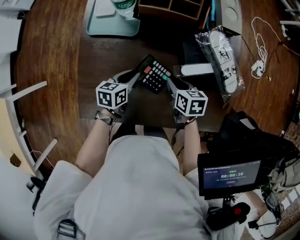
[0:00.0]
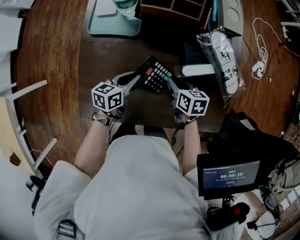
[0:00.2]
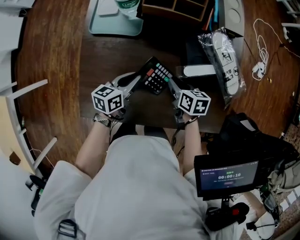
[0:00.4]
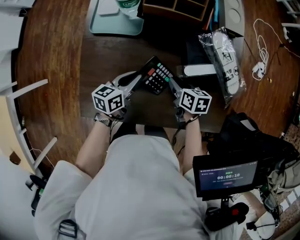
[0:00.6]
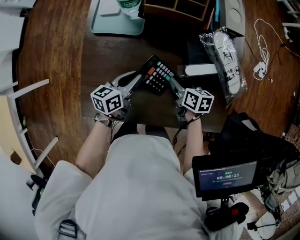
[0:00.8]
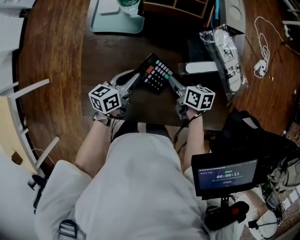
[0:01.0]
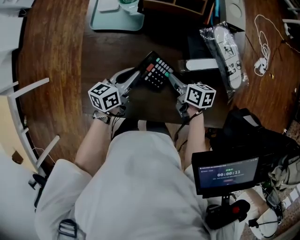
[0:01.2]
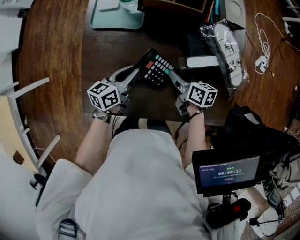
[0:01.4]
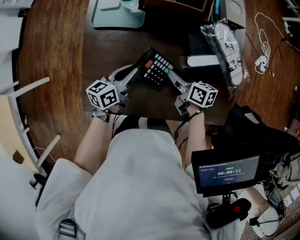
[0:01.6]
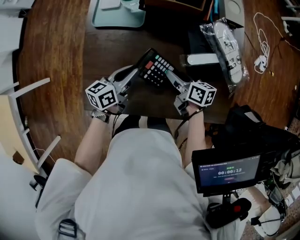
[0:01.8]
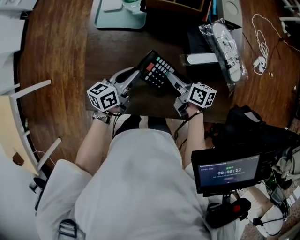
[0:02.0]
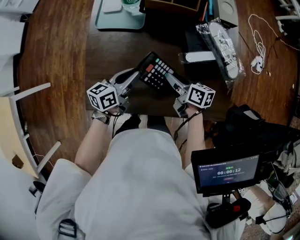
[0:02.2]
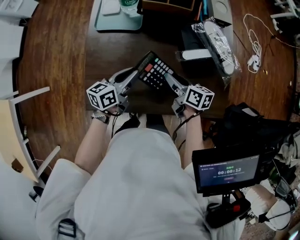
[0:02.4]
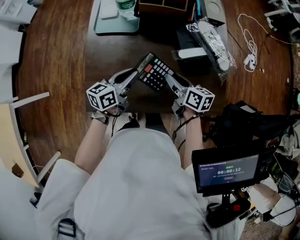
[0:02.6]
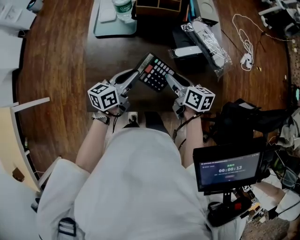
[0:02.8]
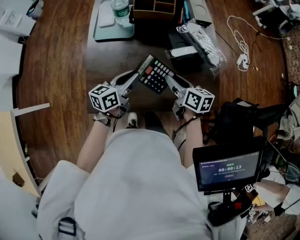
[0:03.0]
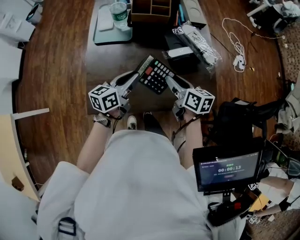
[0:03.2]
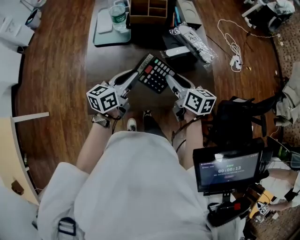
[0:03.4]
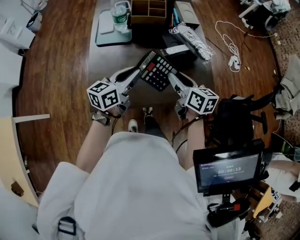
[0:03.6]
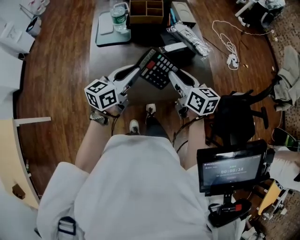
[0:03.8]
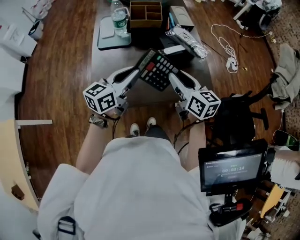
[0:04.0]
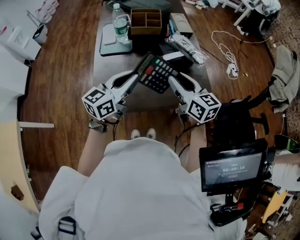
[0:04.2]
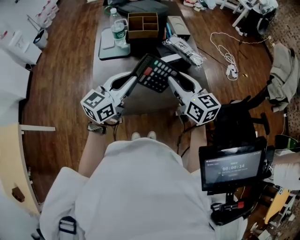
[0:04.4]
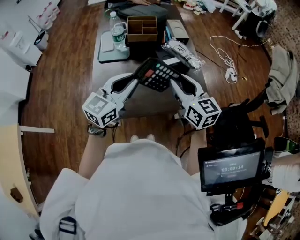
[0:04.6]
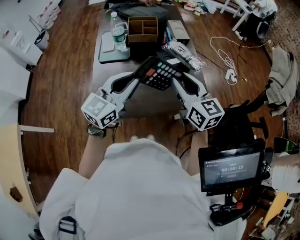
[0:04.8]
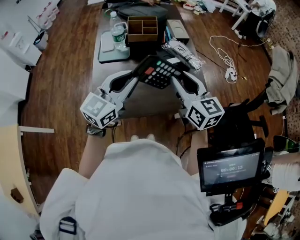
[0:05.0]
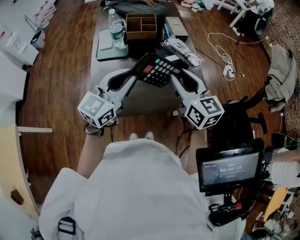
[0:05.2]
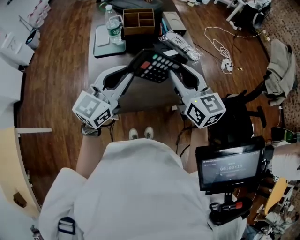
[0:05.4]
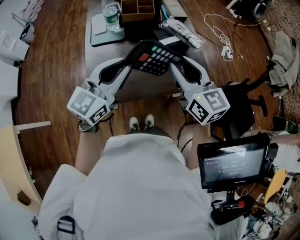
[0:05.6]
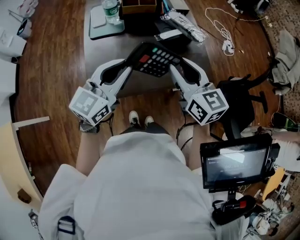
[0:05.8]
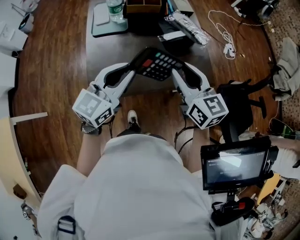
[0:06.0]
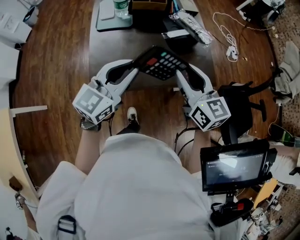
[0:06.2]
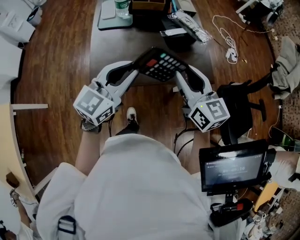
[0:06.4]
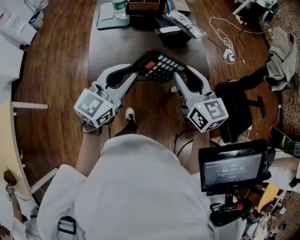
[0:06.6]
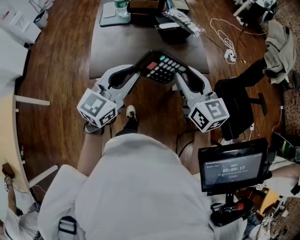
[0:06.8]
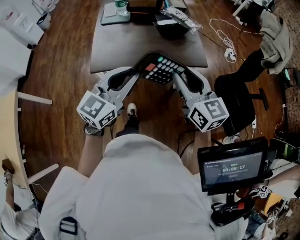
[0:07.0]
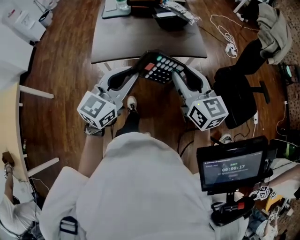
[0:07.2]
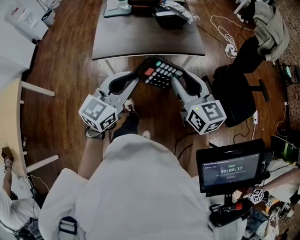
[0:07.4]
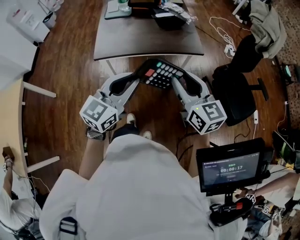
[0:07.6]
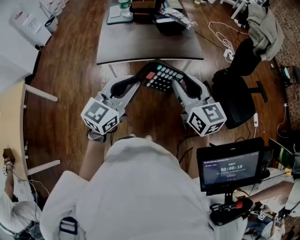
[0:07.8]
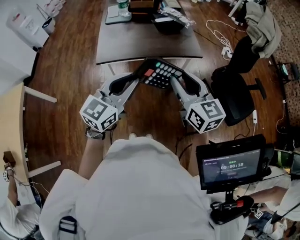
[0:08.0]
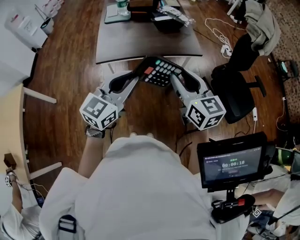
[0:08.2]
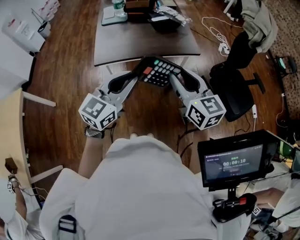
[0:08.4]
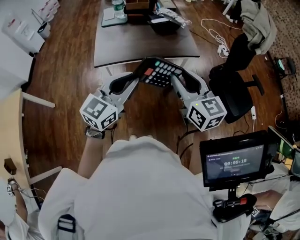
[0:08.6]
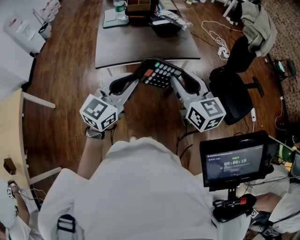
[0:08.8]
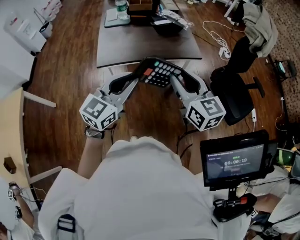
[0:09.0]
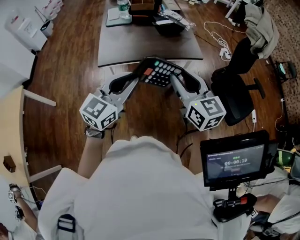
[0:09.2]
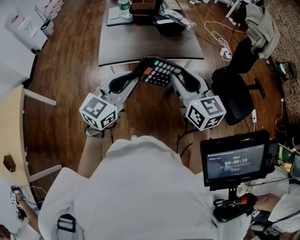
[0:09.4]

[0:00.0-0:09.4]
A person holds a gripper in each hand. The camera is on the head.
0:00.0 to 0:01.6: The right gripper swivels roughly 30 degrees; the left gripper moves some 5 cm.
0:01.6 to 0:03.2: Both grippers move upward and backward, approximately 15 cm. The right gripper changes its angle by approximately 20 degrees.
0:03.2 to 0:04.8: The right gripper travels upward by about 20 cm, and changes its angle by some 40 degrees; the left gripper travels upward and backward by some 20 cm, and swivels about 40 degrees.
0:04.8 to 0:06.2: The two grippers go roughly 5 cm backward.
0:06.2 to 0:07.8: Both grippers move backward, roughly 30 cm.
0:07.8 to 0:09.4: The grippers make only small movements.

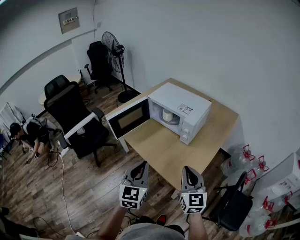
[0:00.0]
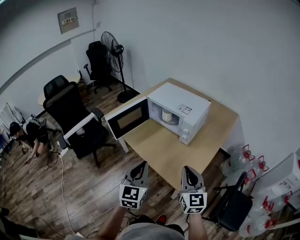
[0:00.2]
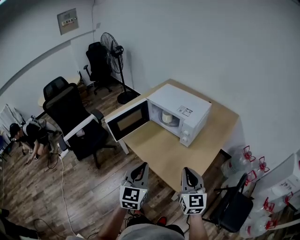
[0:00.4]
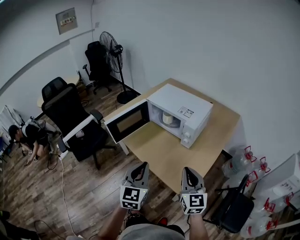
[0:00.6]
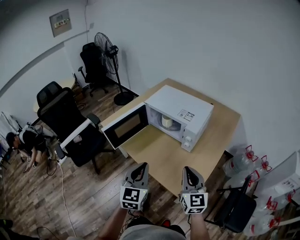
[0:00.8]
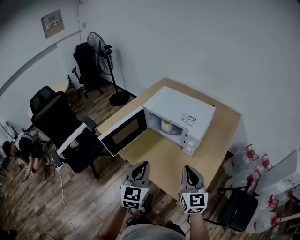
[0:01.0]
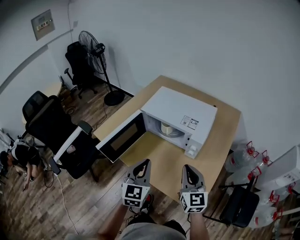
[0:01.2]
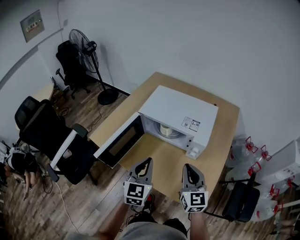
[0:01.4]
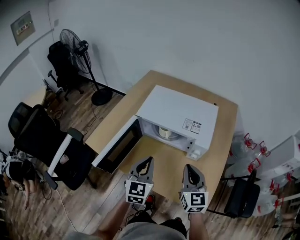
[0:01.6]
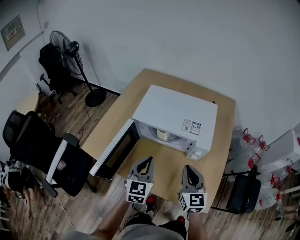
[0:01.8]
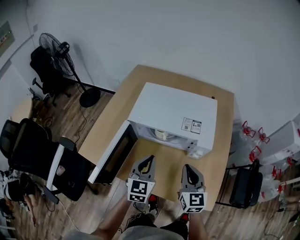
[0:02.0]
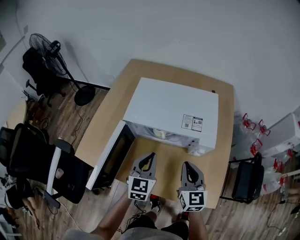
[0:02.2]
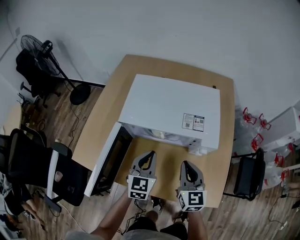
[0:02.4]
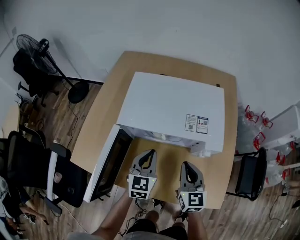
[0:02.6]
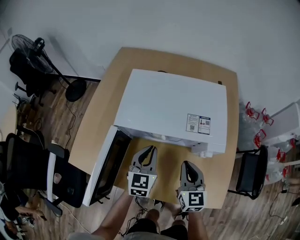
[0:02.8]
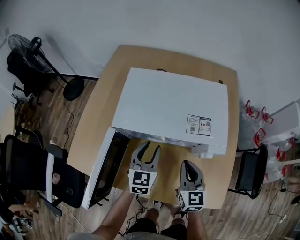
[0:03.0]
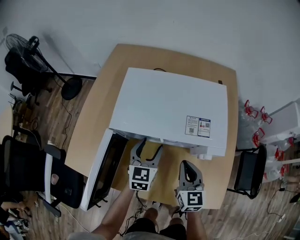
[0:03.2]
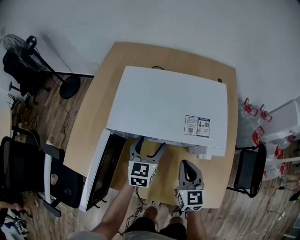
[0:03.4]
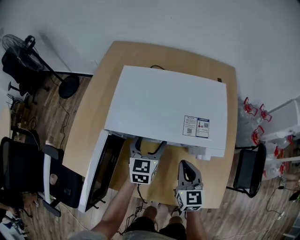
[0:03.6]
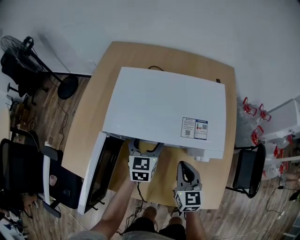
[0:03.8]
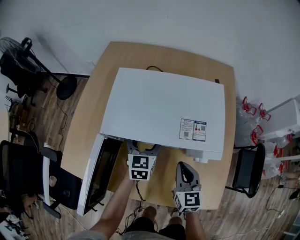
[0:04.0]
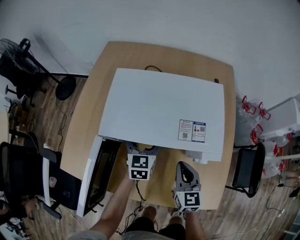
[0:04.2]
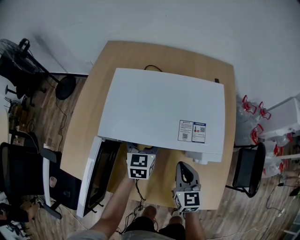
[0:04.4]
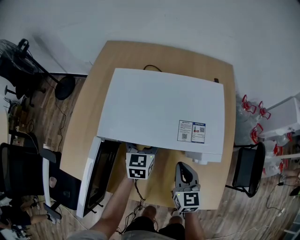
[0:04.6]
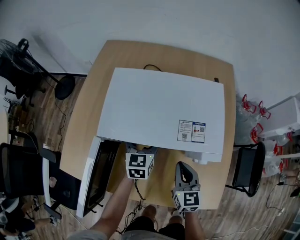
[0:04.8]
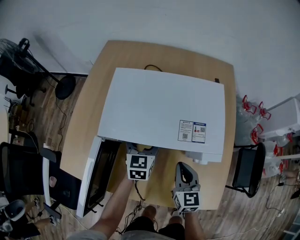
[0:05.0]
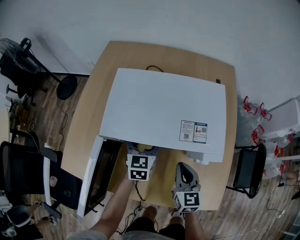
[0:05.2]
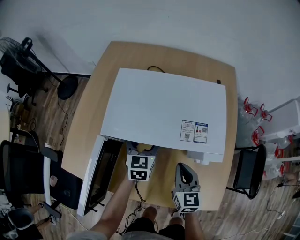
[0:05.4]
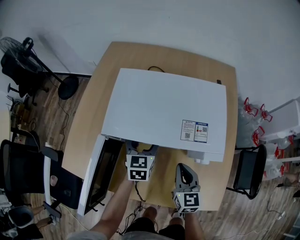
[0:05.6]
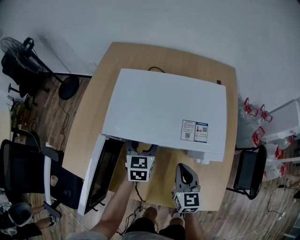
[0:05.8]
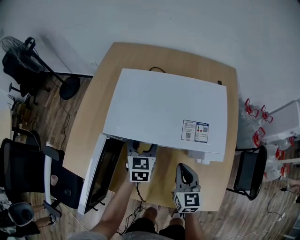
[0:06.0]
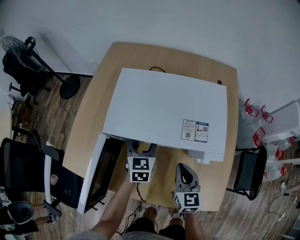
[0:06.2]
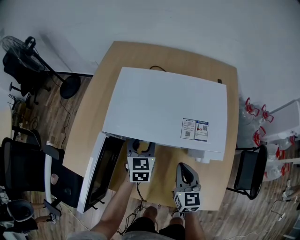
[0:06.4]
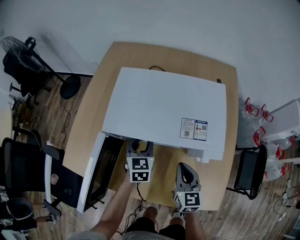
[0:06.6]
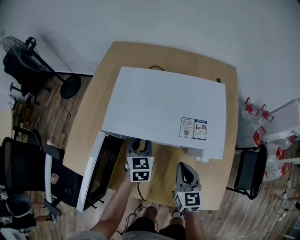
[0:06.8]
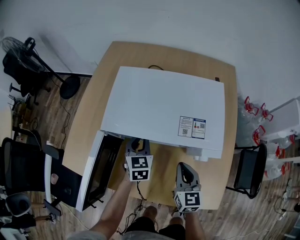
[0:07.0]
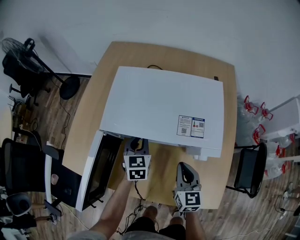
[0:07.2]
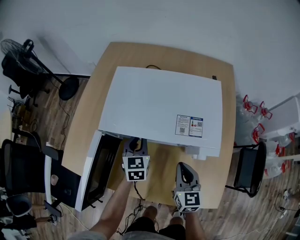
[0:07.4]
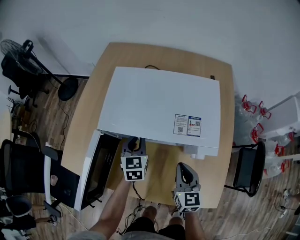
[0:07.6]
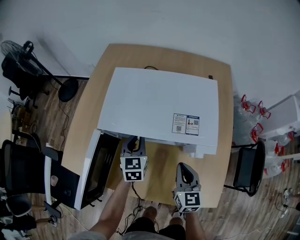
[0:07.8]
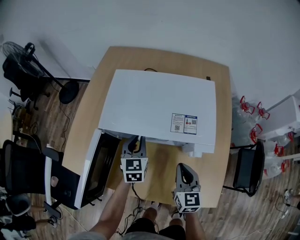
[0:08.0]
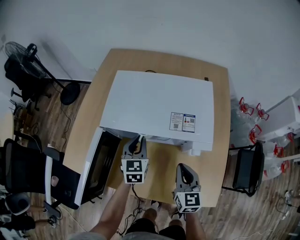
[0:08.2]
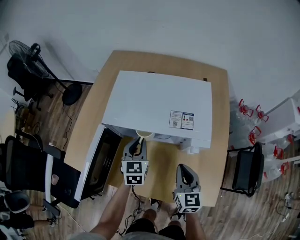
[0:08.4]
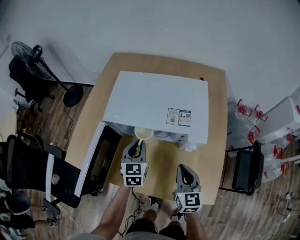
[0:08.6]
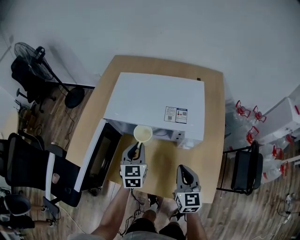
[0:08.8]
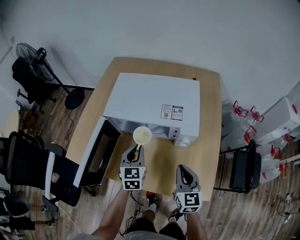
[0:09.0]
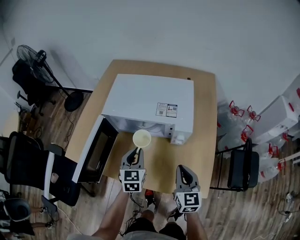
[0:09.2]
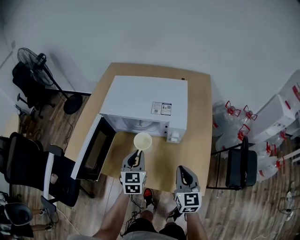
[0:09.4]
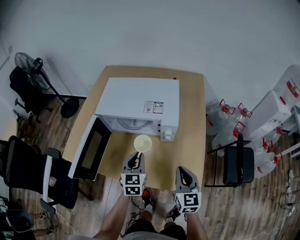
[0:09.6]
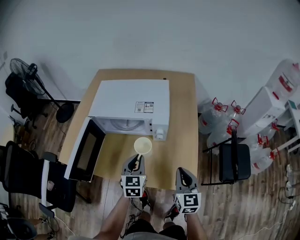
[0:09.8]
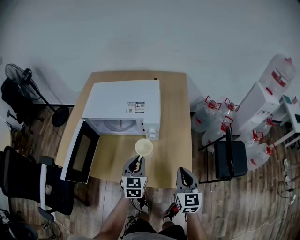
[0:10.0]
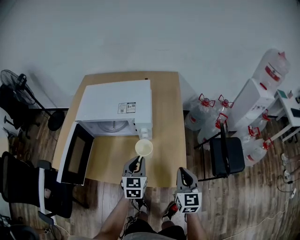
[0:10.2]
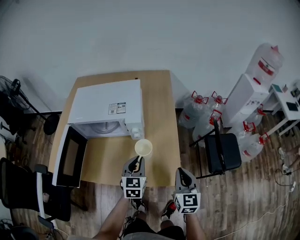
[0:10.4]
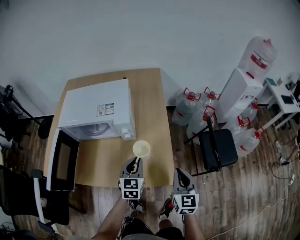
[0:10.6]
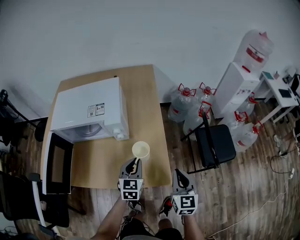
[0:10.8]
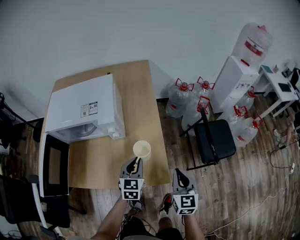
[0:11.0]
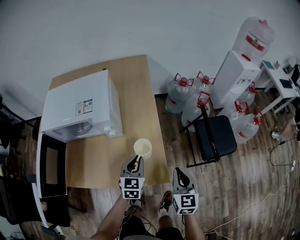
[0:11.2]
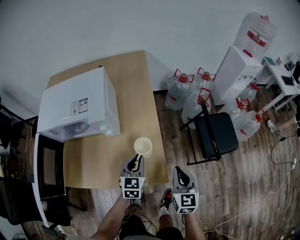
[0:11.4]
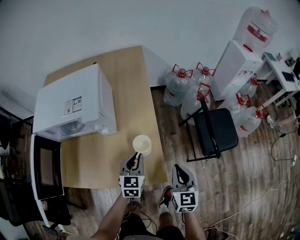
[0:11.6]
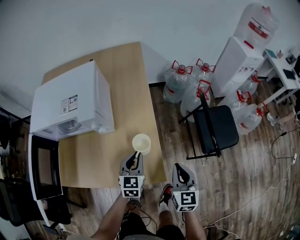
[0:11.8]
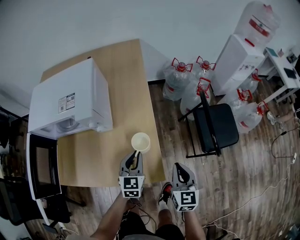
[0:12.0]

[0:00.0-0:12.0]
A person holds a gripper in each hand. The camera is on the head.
0:00.0 to 0:01.6: Both grippers move forward, about 25 cm.
0:01.6 to 0:03.0: The right gripper is displaced downward and forward by roughly 15 cm. Meanwhile the left gripper shifts roughly 20 cm forward and downward.
0:03.0 to 0:04.4: The left gripper goes roughly 10 cm forward, and opens.
0:04.4 to 0:06.0: The grippers move only a little.
0:06.0 to 0:07.6: The left gripper closes its fingers.
0:07.6 to 0:09.0: Both grippers travel together backward and upward, approximately 10 cm.
0:09.0 to 0:10.4: The two grippers go approximately 25 cm to the right and backward.
0:10.4 to 0:12.0: The left gripper shifts approximately 15 cm to the right and downward. Meanwhile the right gripper goes approximately 15 cm downward and to the right.

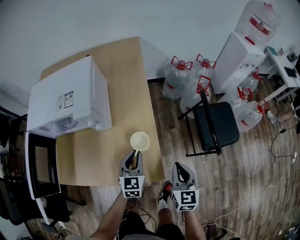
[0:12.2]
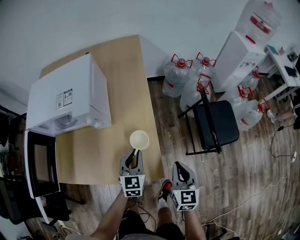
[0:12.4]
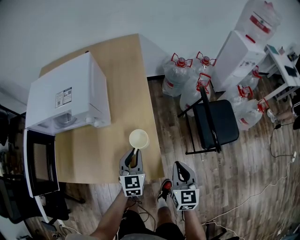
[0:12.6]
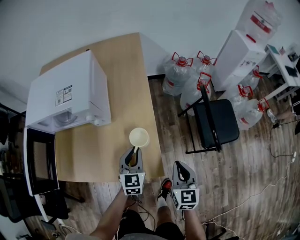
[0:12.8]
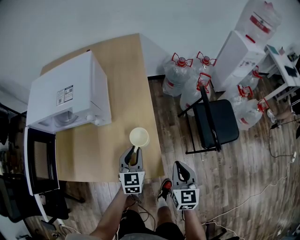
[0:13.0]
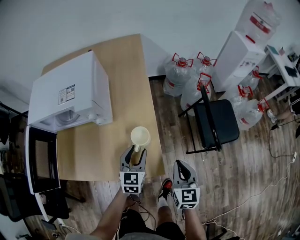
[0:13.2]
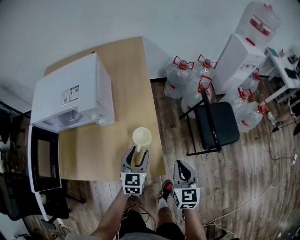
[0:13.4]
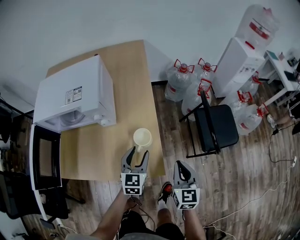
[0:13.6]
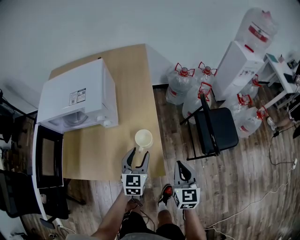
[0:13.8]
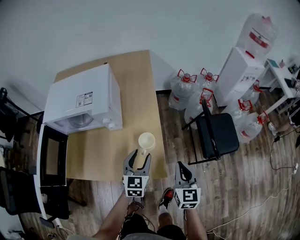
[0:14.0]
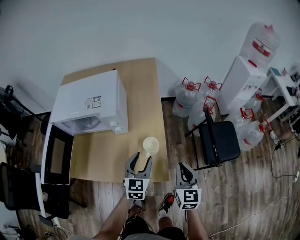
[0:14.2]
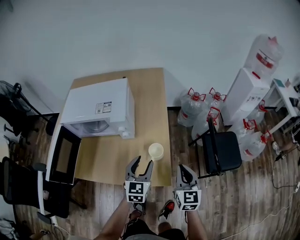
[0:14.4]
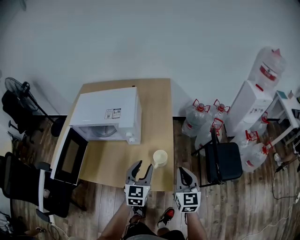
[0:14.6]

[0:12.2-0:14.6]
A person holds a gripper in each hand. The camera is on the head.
0:12.2 to 0:13.4: The left gripper opens its fingers.
0:13.4 to 0:14.6: The two grippers go approximately 15 cm upward.
